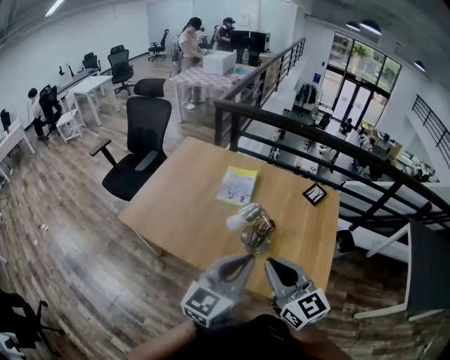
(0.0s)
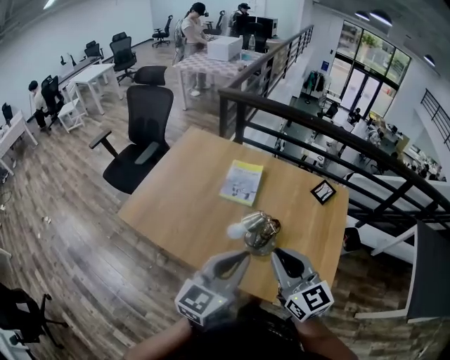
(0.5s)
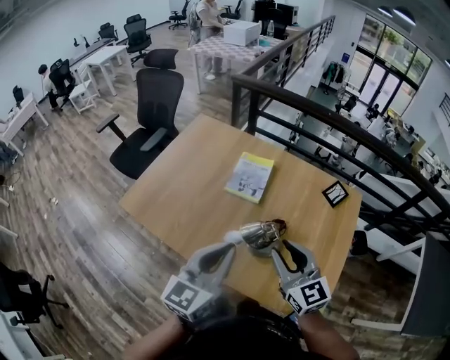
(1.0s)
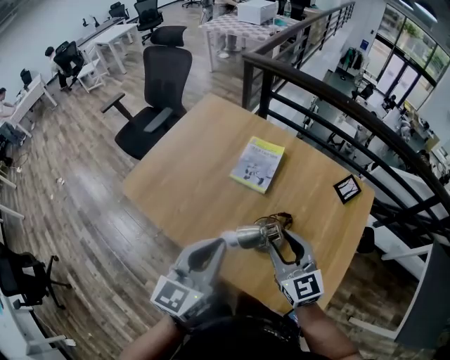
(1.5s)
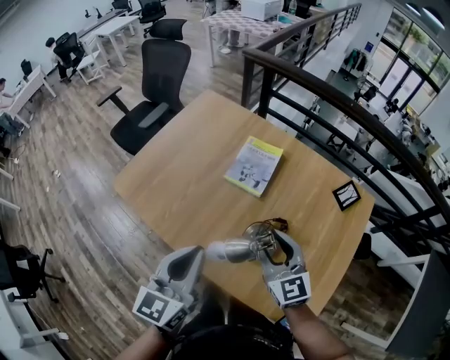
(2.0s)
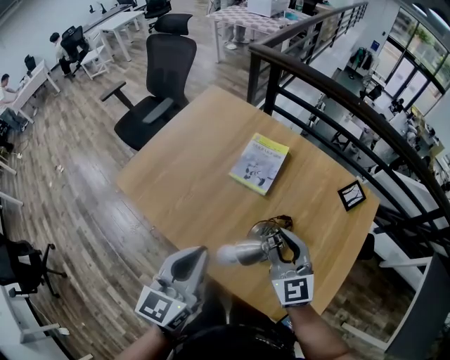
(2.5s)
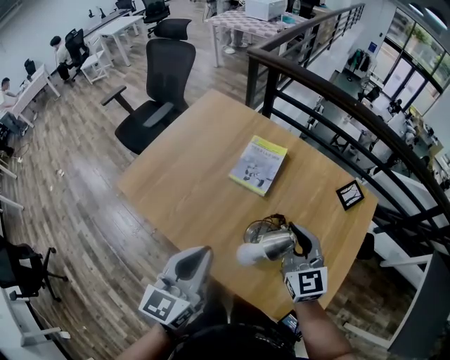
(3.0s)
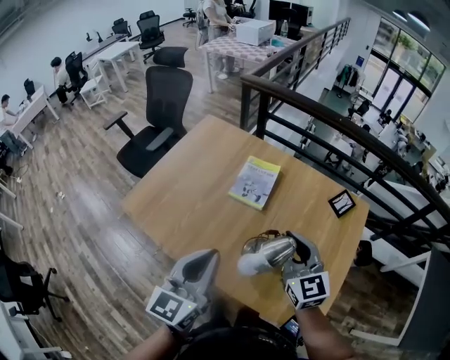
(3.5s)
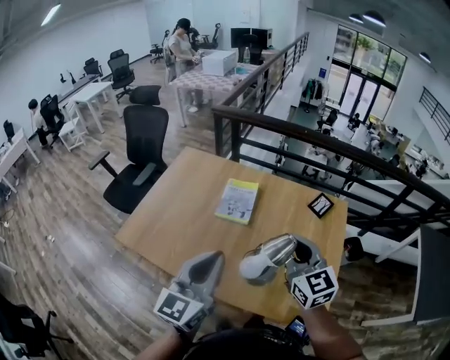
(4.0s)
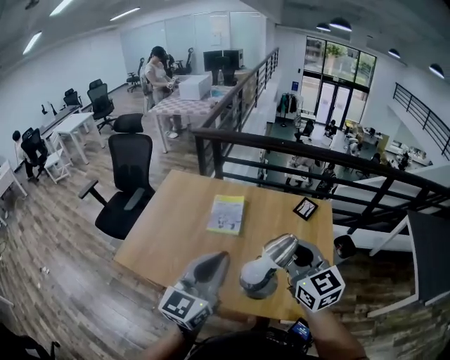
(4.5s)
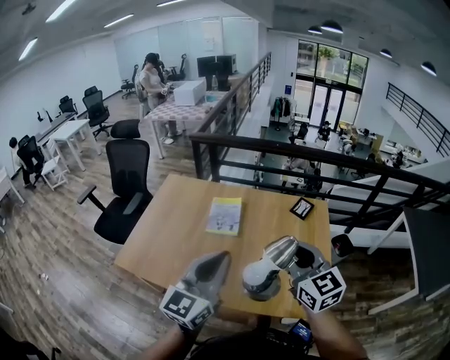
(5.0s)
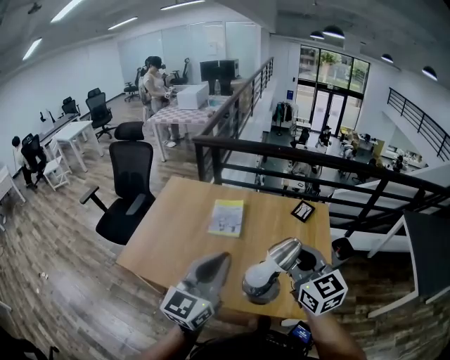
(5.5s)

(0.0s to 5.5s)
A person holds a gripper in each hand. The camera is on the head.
0.0s - 2.0s: The left gripper shifts about 15 cm forward, to the left and downward, and rotates approximately 30 degrees. The right gripper goes approximately 25 cm forward and downward, and opens.
2.0s - 3.5s: The two grippers go roughly 5 cm upward. The right gripper closes.
3.5s - 5.5s: The right gripper goes about 20 cm backward and upward. The left gripper travels upward and backward by roughly 10 cm, and swivels about 30 degrees.

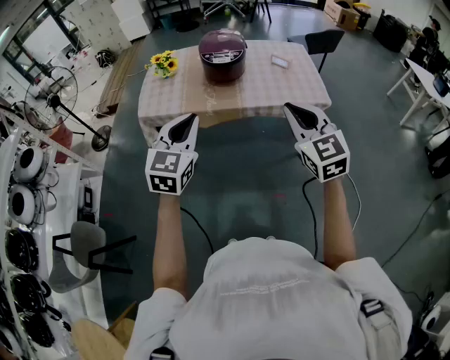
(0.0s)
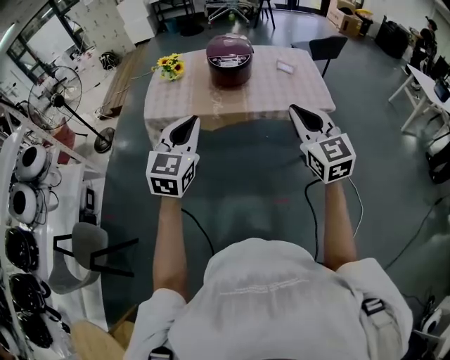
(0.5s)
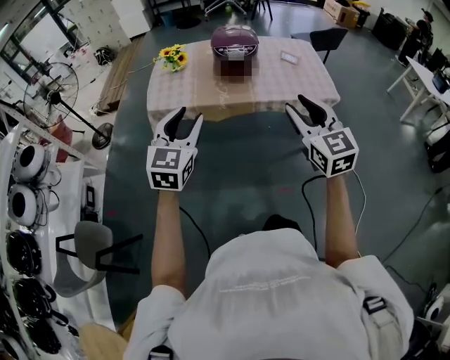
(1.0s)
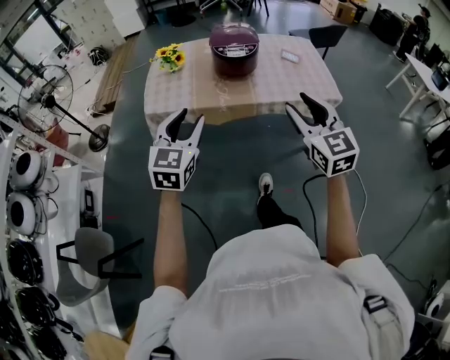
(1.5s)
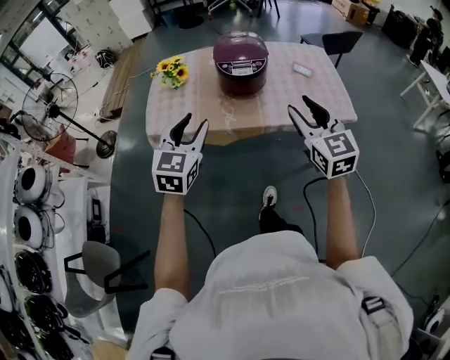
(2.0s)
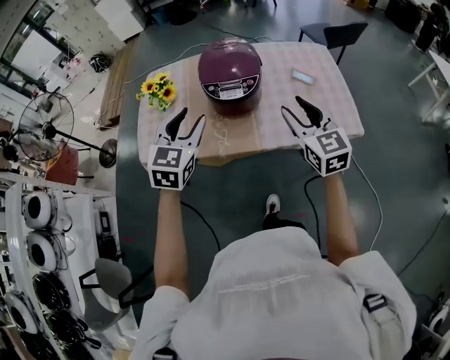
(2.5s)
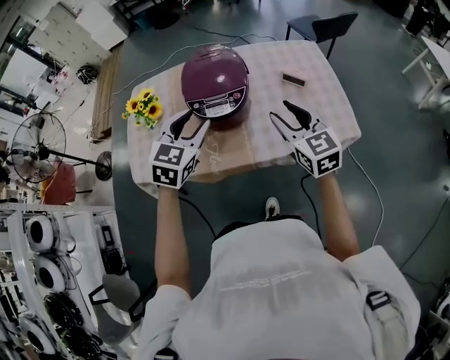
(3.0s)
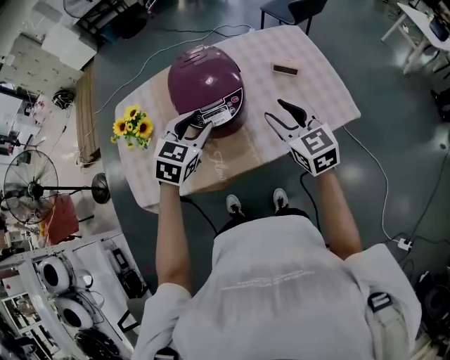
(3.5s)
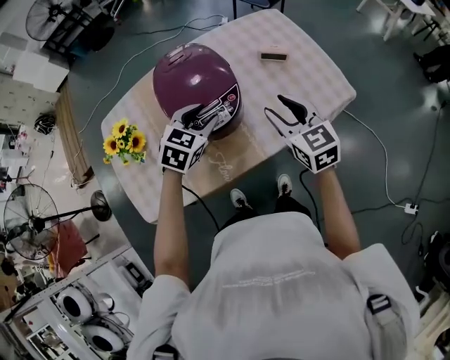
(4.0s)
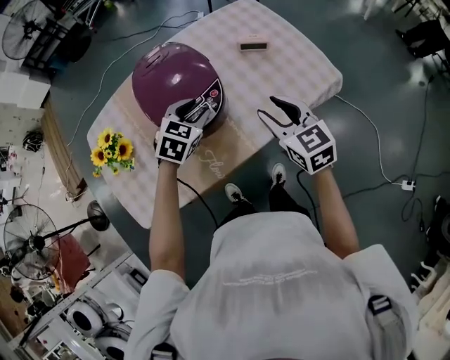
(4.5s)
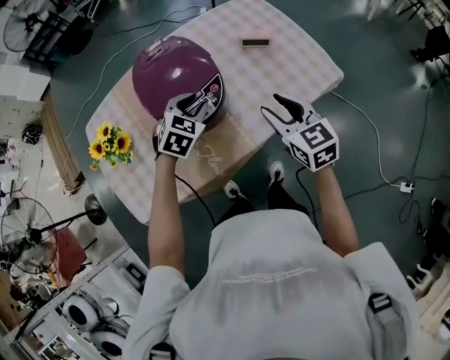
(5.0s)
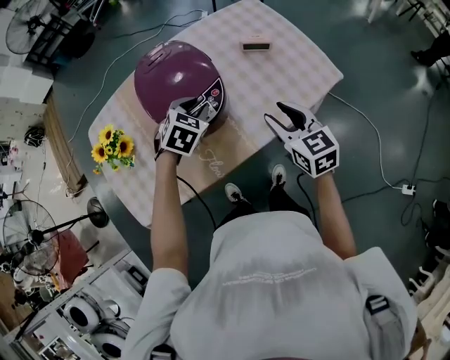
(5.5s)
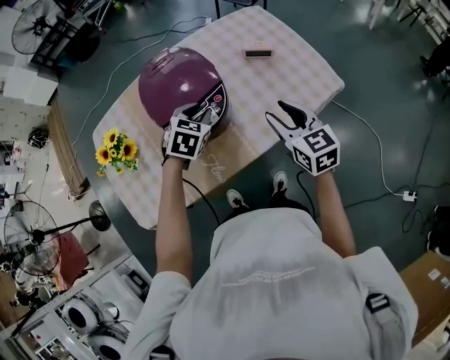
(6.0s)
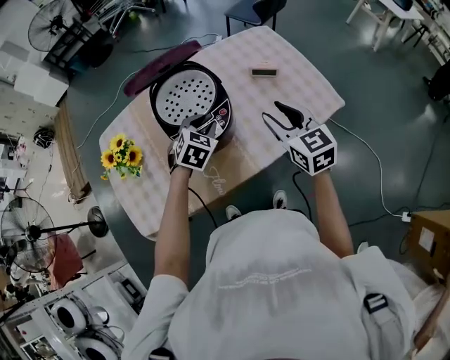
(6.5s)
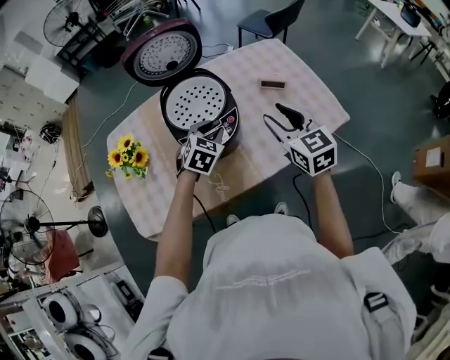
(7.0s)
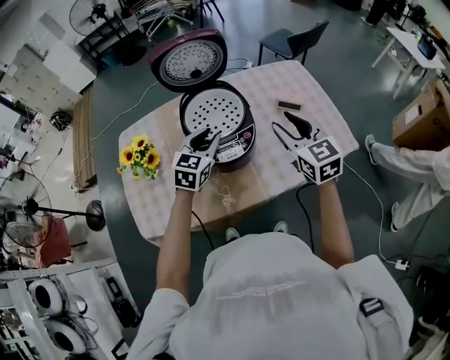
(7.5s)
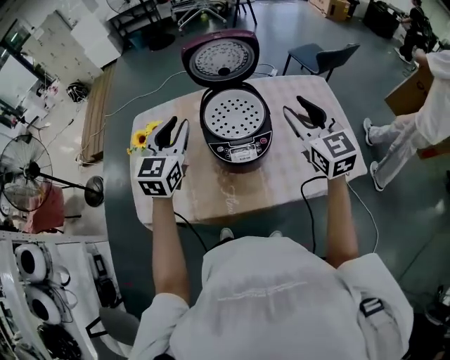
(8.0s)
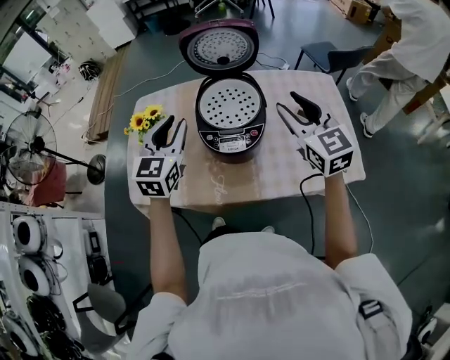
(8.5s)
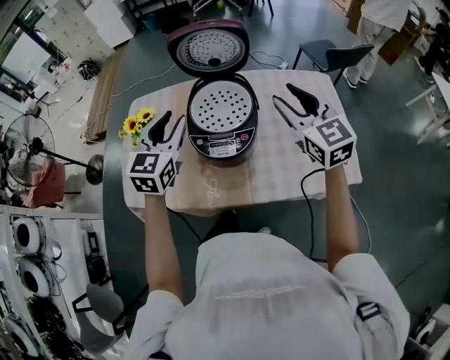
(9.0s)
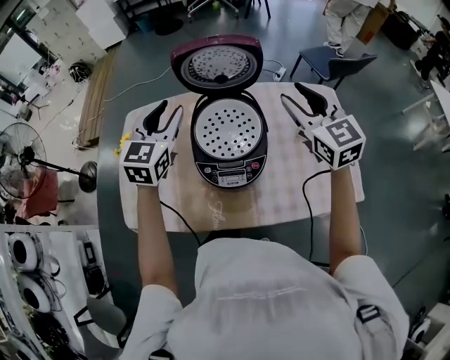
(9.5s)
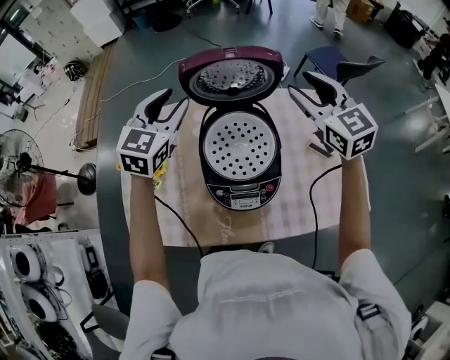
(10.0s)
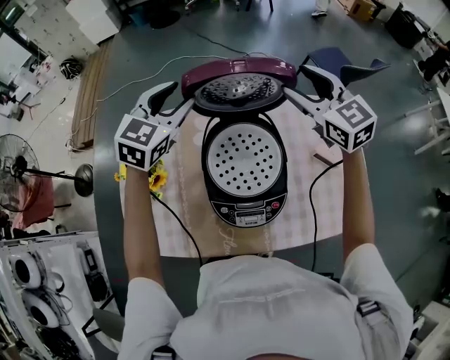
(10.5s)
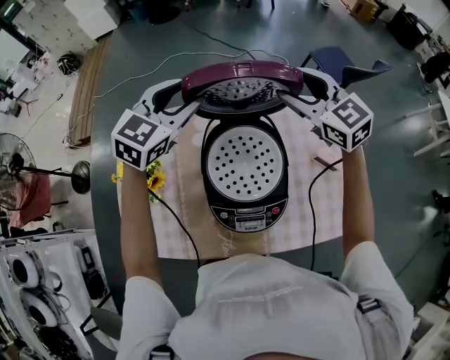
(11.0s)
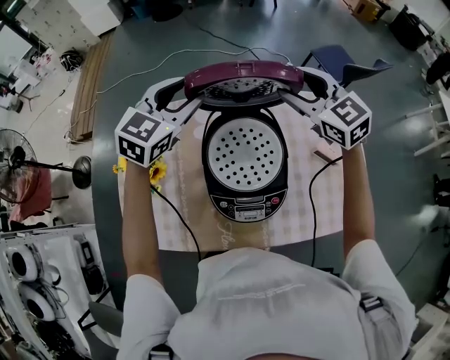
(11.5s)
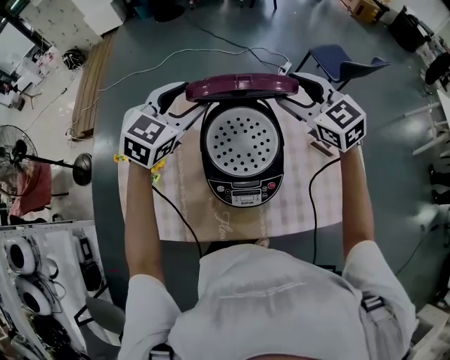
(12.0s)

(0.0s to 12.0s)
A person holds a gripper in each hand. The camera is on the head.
0.0s - 2.0s: The left gripper shifts roughly 20 cm forward and to the left, and opens its fingers. Meanwhile the right gripper heads forward, covering approximately 15 cm, and opens up.
2.0s - 4.0s: The right gripper moves roughly 30 cm, and rotates roughly 20 degrees; the left gripper moves approximately 40 cm, and turns by approximately 50 degrees.
4.0s - 6.0s: The left gripper changes place by some 5 cm.
6.0s - 8.0s: The left gripper is displaced upward and to the left by about 25 cm, and angles its fingers upward, by approximately 40 degrees; the right gripper heads upward, forward and to the left, covering about 20 cm, and swivels roughly 30 degrees.
8.0s - 10.0s: Both grippers move forward, some 20 cm.
10.0s - 12.0s: The right gripper reaches about 10 cm forward, then returns.

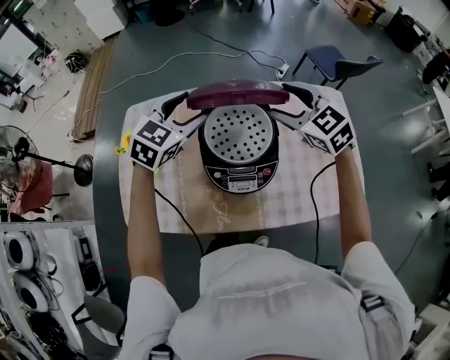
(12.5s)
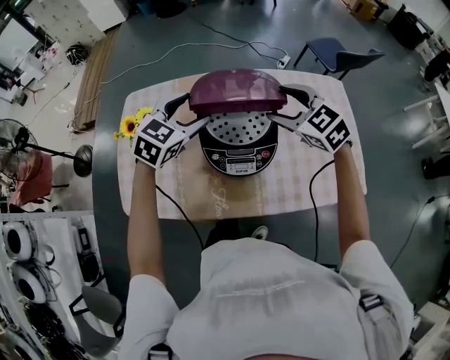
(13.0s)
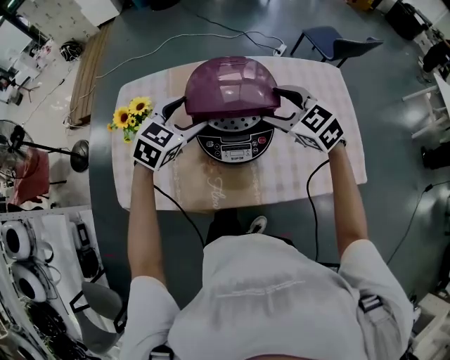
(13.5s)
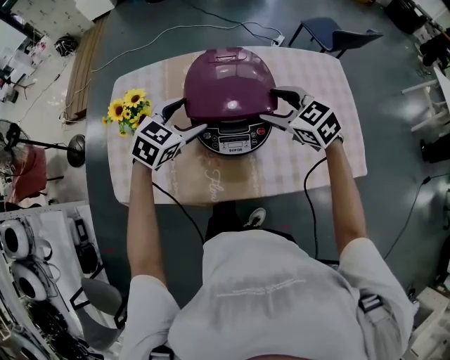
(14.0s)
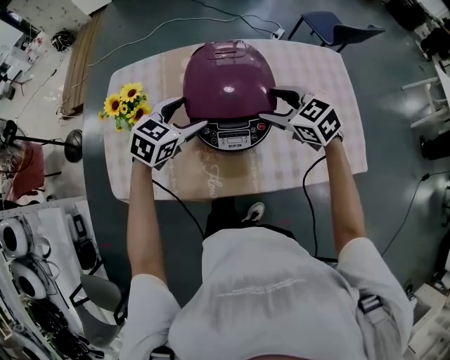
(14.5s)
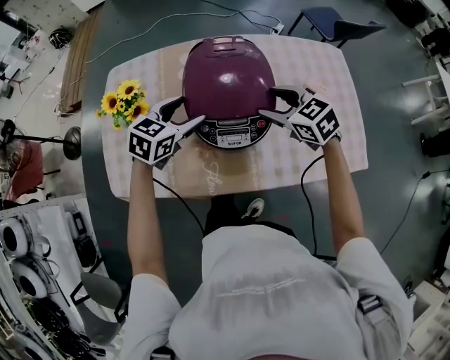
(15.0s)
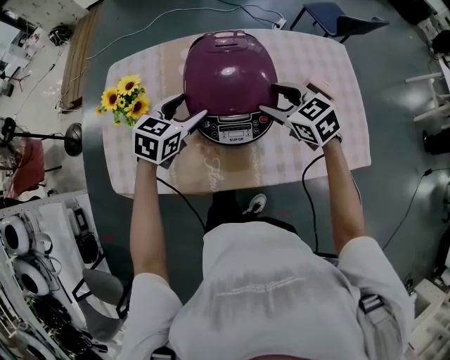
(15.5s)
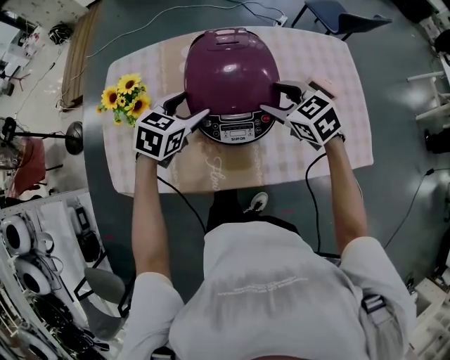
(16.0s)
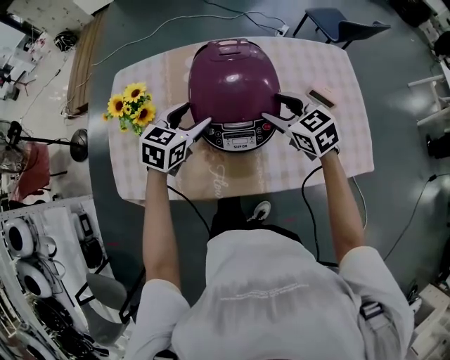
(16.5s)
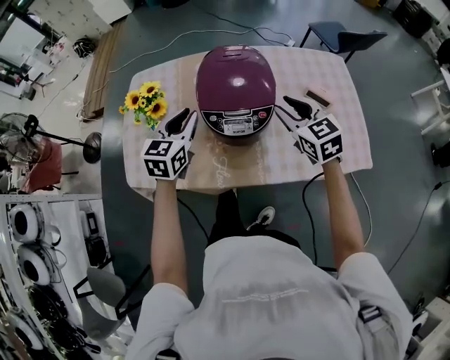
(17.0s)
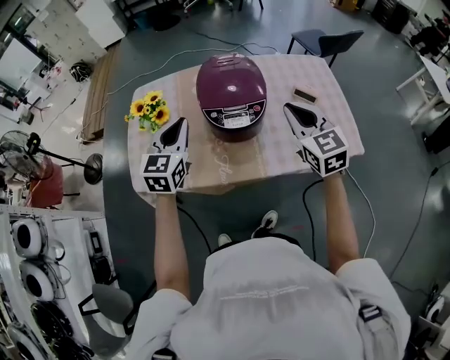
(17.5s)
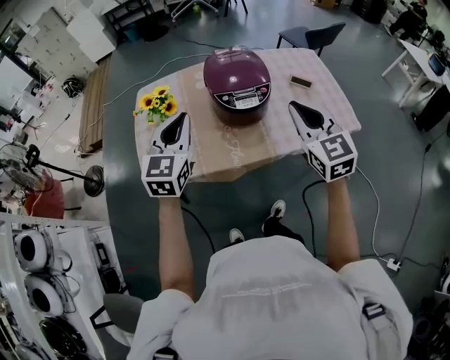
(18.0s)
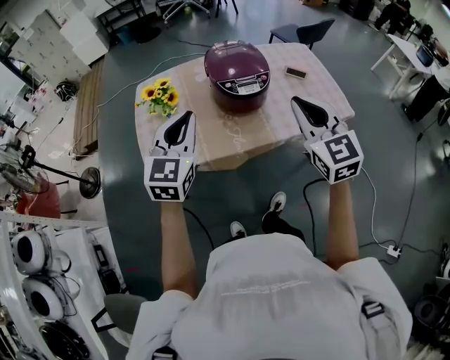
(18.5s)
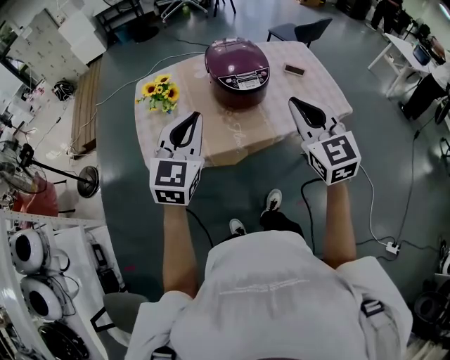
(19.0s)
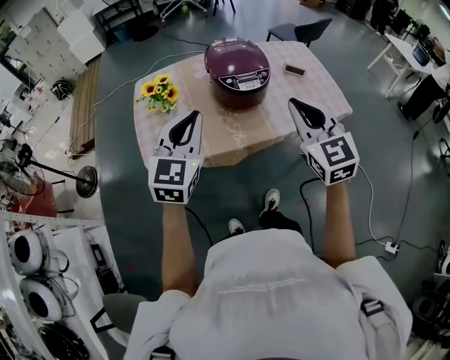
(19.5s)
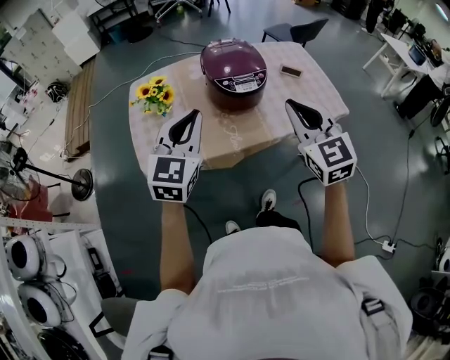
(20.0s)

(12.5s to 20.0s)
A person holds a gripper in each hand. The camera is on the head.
12.5s - 14.5s: Both grippers move downward and backward, about 15 cm.
14.5s - 16.5s: The grippers move only a little.
16.5s - 18.0s: The left gripper is displaced backward, upward and to the left by approximately 30 cm, swivels some 30 degrees, and closes up, while the right gripper travels backward and upward by roughly 30 cm, changes its angle by roughly 40 degrees, and closes up.
18.0s - 20.0s: The left gripper shifts roughly 10 cm backward; the right gripper travels backward and to the left by roughly 10 cm.

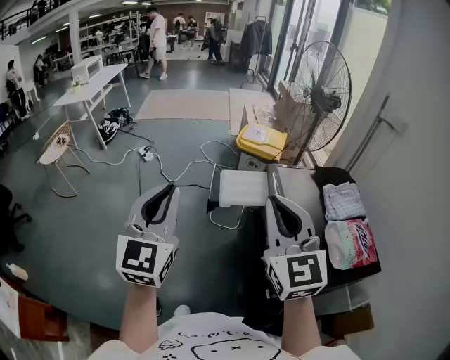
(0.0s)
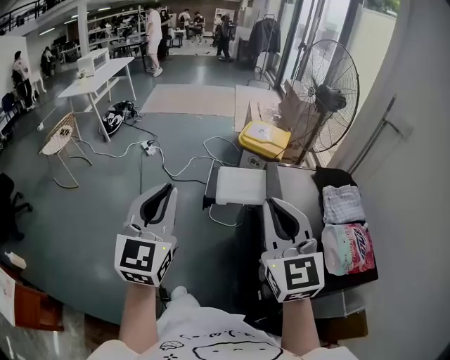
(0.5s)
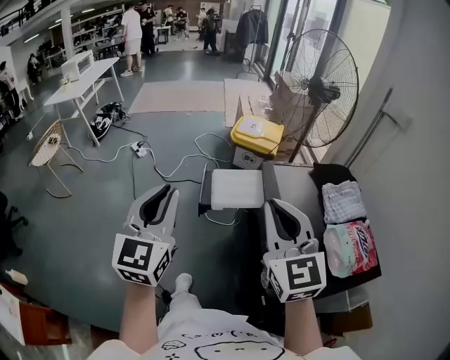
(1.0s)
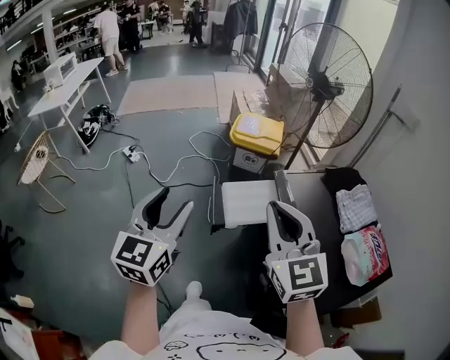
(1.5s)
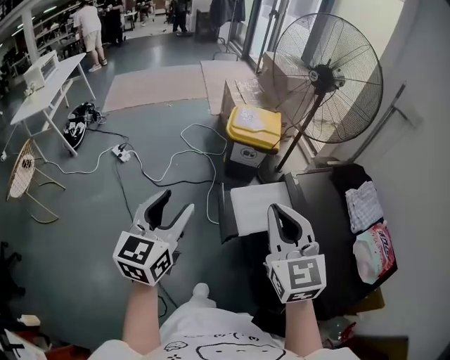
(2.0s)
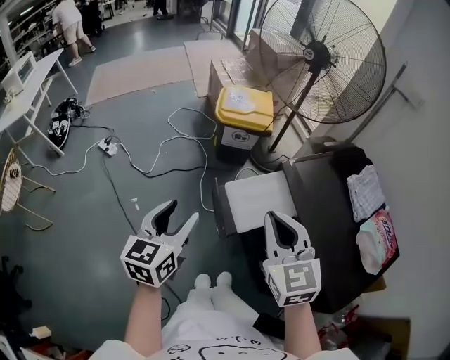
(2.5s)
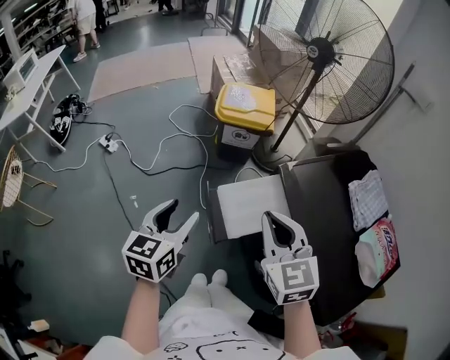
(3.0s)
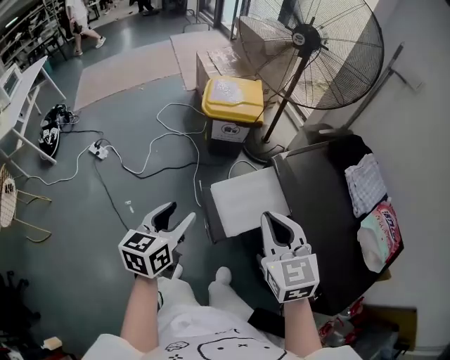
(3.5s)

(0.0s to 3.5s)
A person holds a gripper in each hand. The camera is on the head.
0.0s - 2.0s: The right gripper shifts roughly 20 cm forward and to the left, while the left gripper moves forward and downward, roughly 25 cm, changes its angle by some 30 degrees, and opens.
2.0s - 3.5s: Both grippers travel together downward and forward, some 15 cm. The left gripper changes its angle by some 20 degrees.
